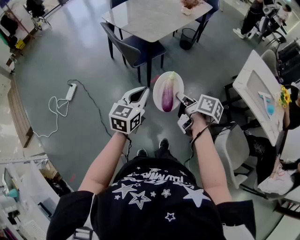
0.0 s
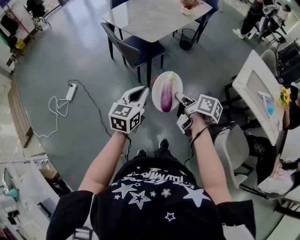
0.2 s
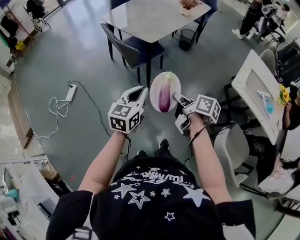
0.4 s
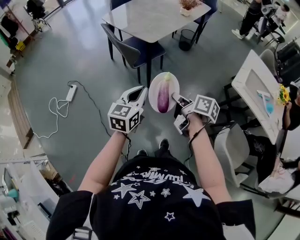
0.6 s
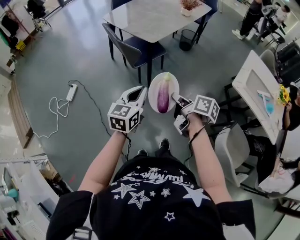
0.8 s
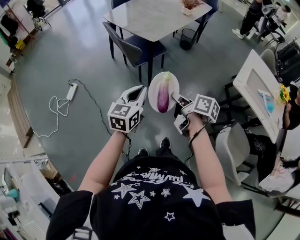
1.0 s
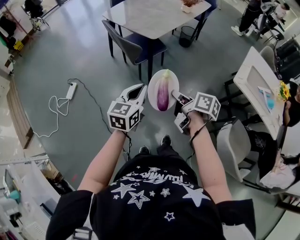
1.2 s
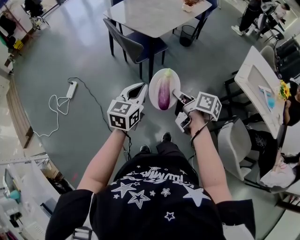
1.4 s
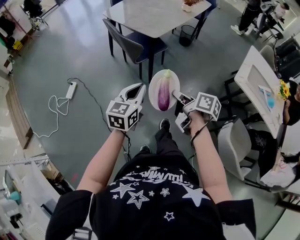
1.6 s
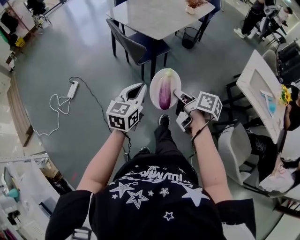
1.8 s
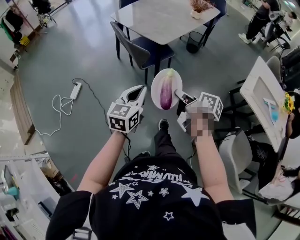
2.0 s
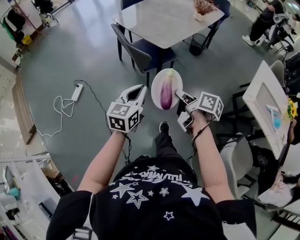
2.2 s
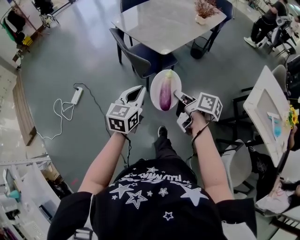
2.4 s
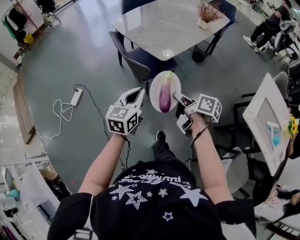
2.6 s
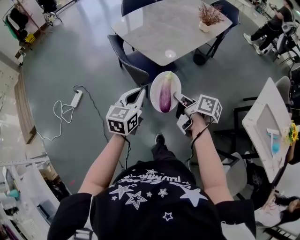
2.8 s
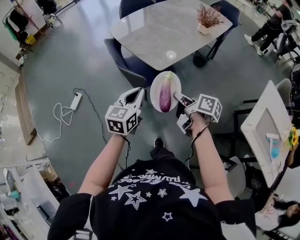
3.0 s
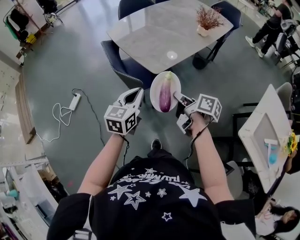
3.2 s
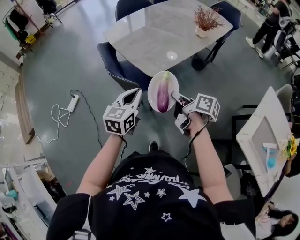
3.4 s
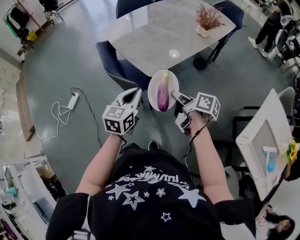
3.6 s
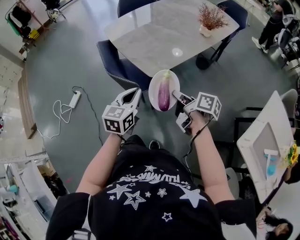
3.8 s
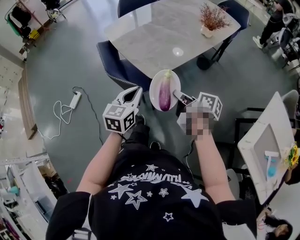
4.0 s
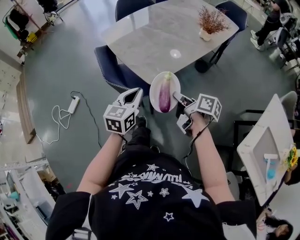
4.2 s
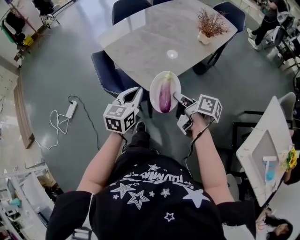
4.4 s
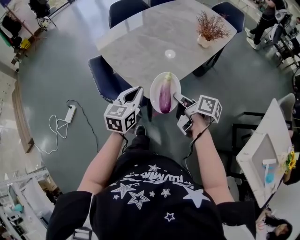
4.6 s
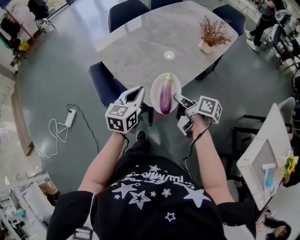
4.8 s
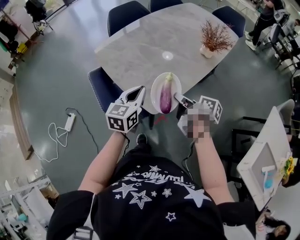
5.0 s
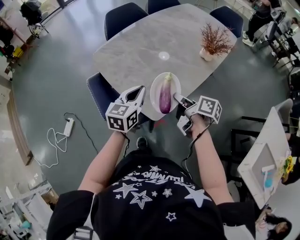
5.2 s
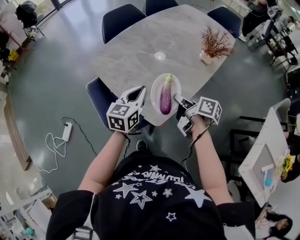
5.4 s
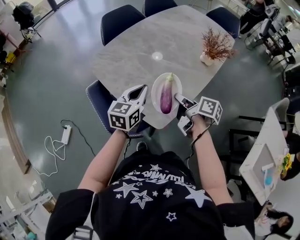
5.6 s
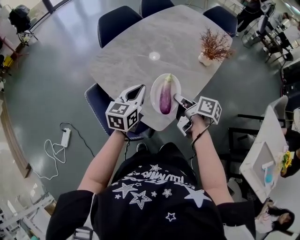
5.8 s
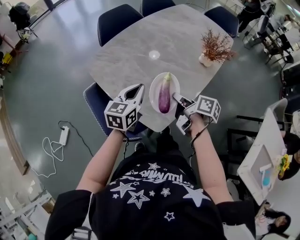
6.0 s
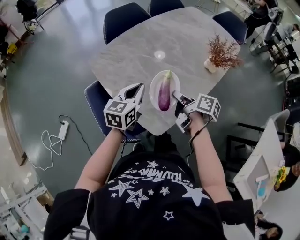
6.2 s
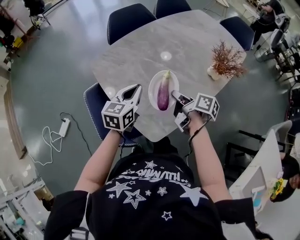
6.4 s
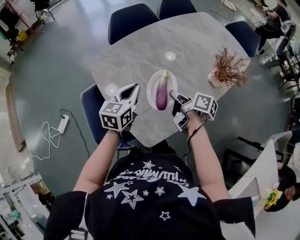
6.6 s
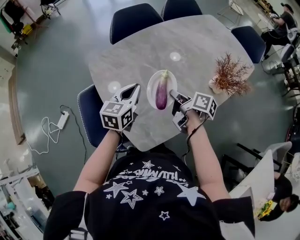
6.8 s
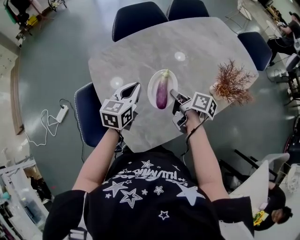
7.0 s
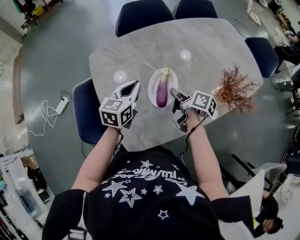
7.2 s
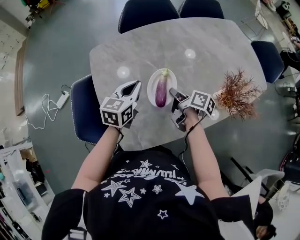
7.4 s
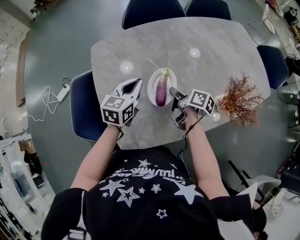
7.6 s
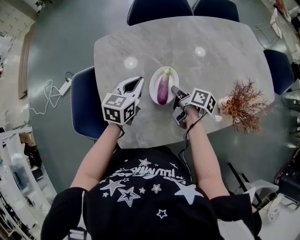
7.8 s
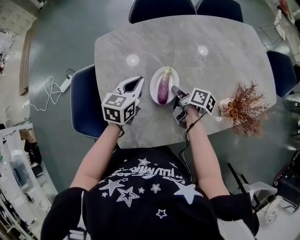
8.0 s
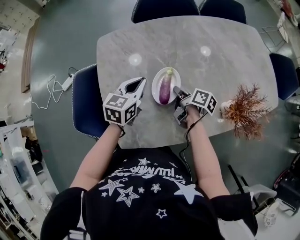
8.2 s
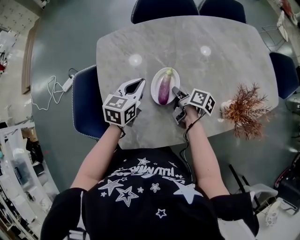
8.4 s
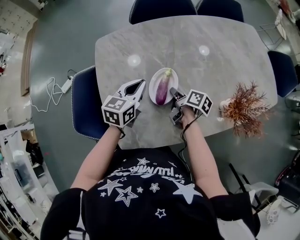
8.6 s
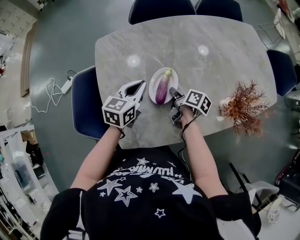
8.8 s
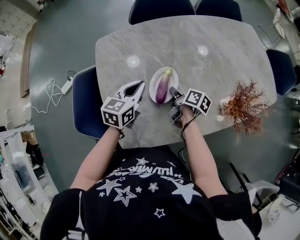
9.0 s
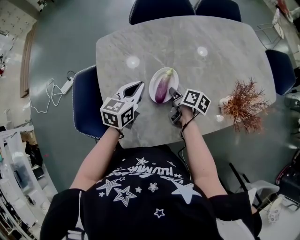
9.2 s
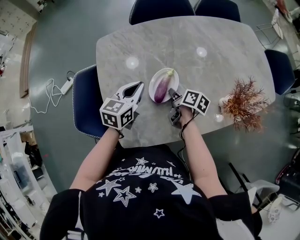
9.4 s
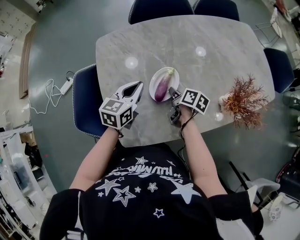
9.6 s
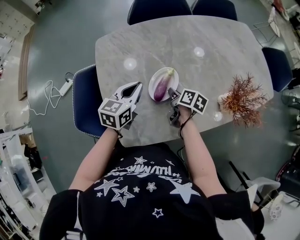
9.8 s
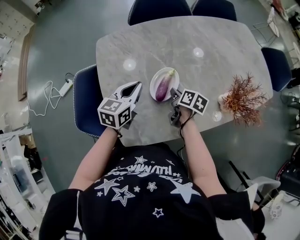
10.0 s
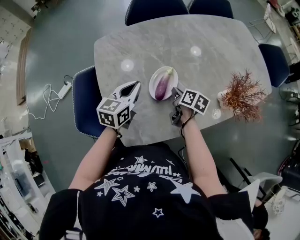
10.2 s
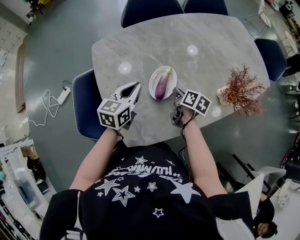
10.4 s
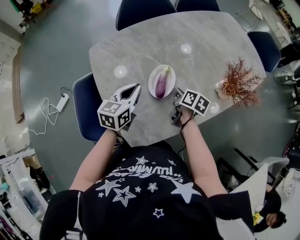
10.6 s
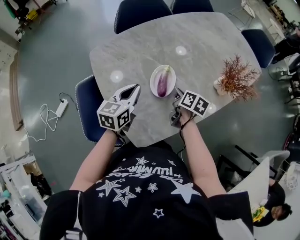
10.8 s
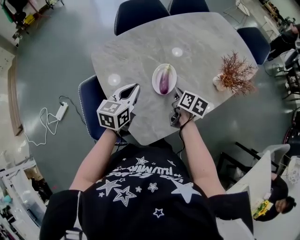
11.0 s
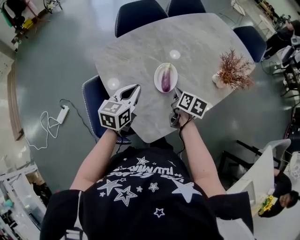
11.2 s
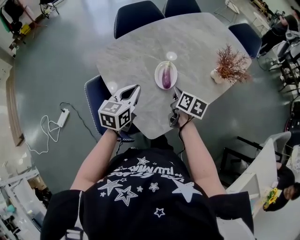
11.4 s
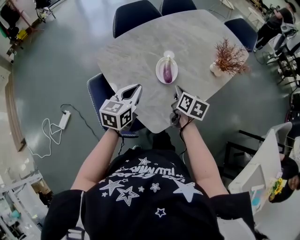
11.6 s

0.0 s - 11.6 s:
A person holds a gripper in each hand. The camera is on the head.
0.0 s - 1.4 s: The right gripper moves to the left, roughly 5 cm.
1.4 s - 2.8 s: The grippers both shift forward by approximately 20 cm.
2.8 s - 4.4 s: Both grippers move forward and to the right, roughly 20 cm.
4.4 s - 5.8 s: The grippers both shift forward by approximately 20 cm.
5.8 s - 7.2 s: The left gripper moves forward, approximately 15 cm, and rotates approximately 20 degrees. Meanwhile the right gripper travels forward by approximately 20 cm, and swivels about 20 degrees.
7.2 s - 8.8 s: The right gripper goes some 10 cm downward.
8.8 s - 10.2 s: The grippers move only a little.
10.2 s - 11.6 s: The two grippers go roughly 15 cm backward and upward. The right gripper changes its angle by approximately 30 degrees.

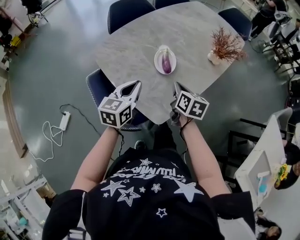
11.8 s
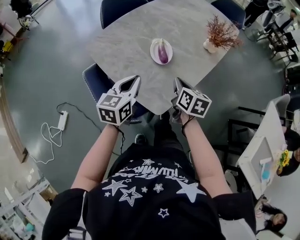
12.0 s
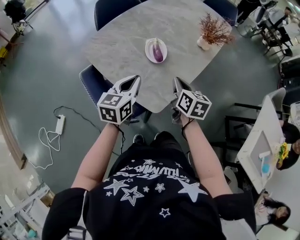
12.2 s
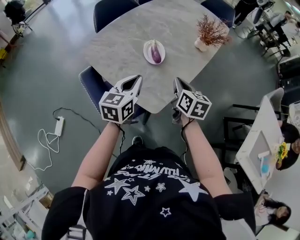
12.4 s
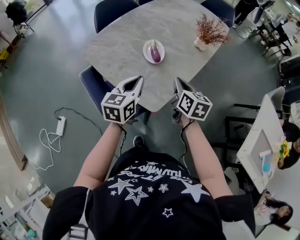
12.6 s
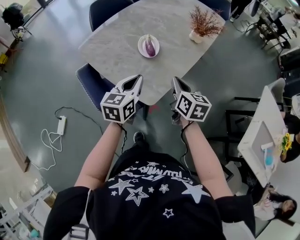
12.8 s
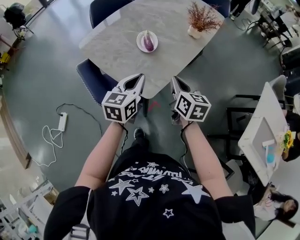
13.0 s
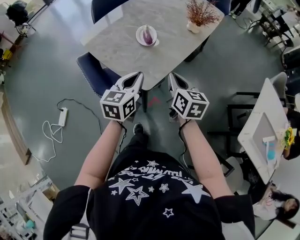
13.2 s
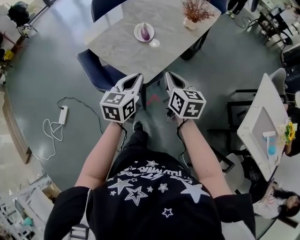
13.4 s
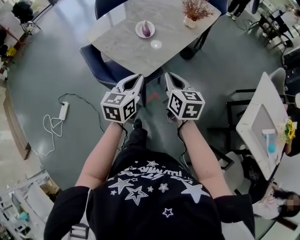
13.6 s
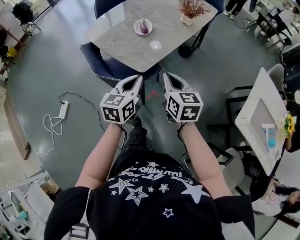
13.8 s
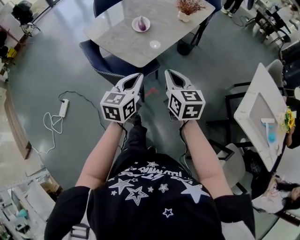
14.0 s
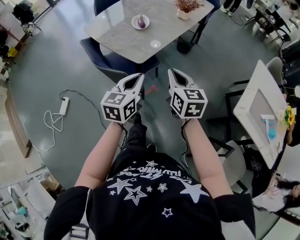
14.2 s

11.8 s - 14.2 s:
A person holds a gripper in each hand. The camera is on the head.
11.8 s - 13.0 s: The right gripper travels backward and to the right by roughly 15 cm. The left gripper goes about 15 cm to the right and backward.
13.0 s - 14.2 s: The two grippers go about 20 cm backward.

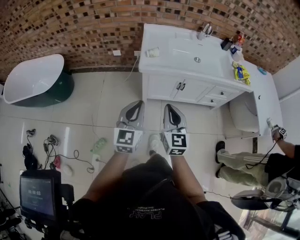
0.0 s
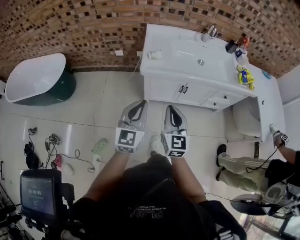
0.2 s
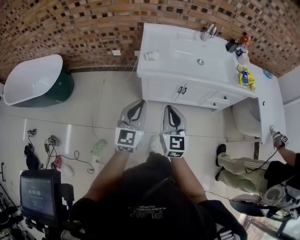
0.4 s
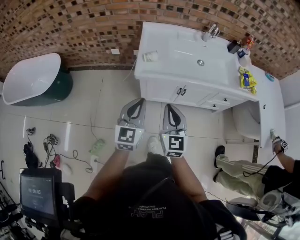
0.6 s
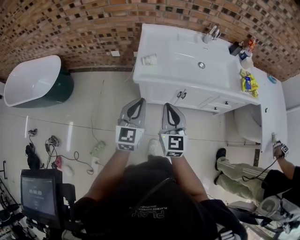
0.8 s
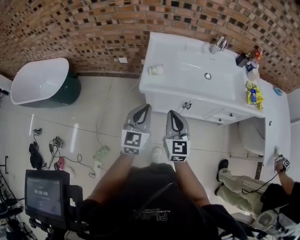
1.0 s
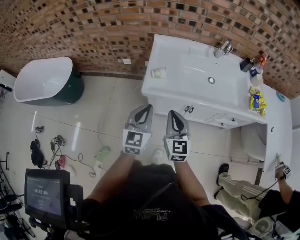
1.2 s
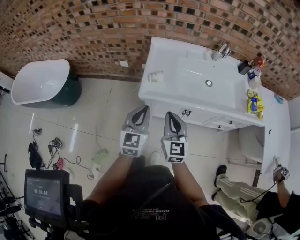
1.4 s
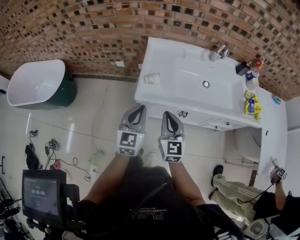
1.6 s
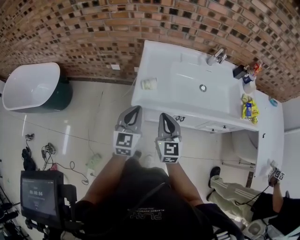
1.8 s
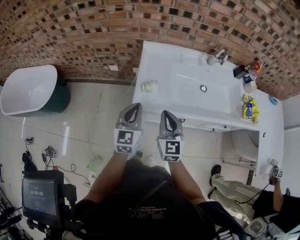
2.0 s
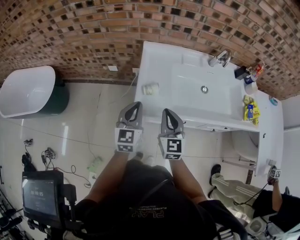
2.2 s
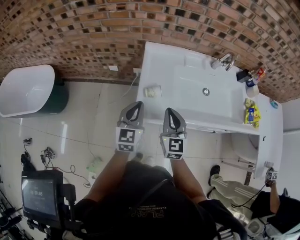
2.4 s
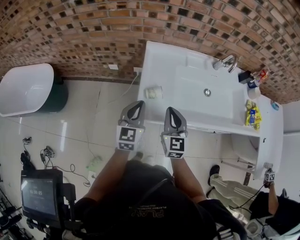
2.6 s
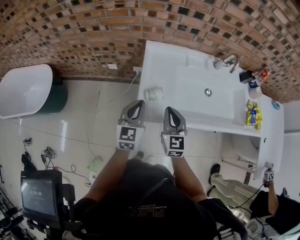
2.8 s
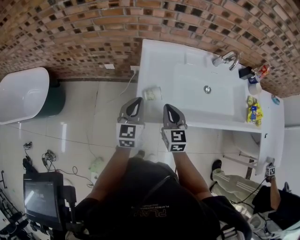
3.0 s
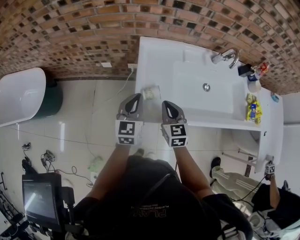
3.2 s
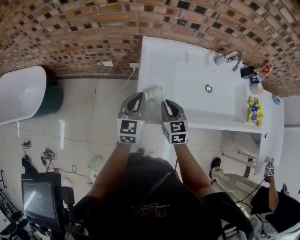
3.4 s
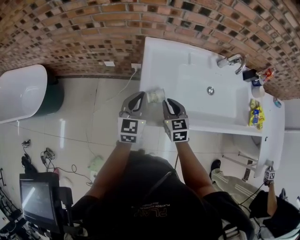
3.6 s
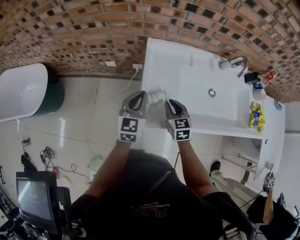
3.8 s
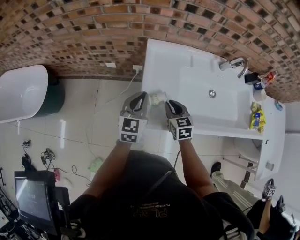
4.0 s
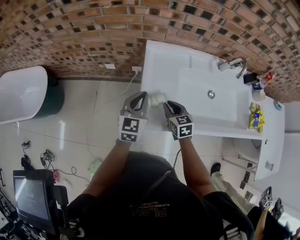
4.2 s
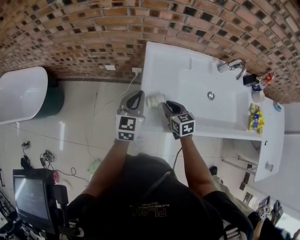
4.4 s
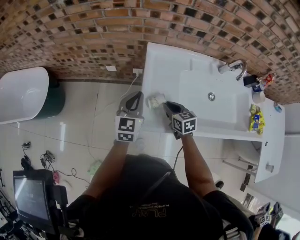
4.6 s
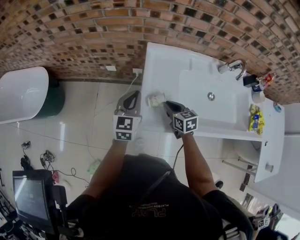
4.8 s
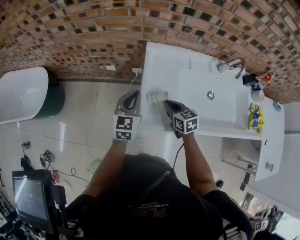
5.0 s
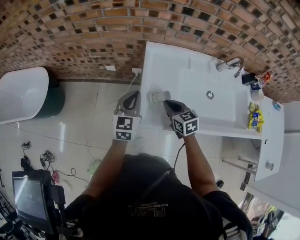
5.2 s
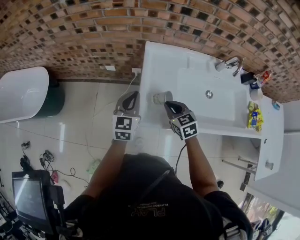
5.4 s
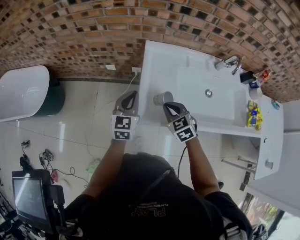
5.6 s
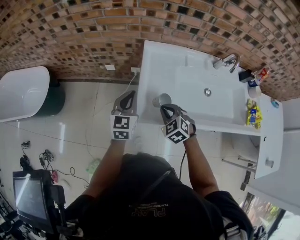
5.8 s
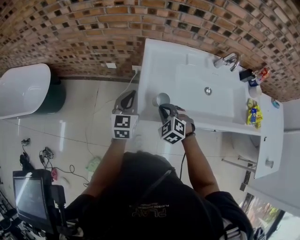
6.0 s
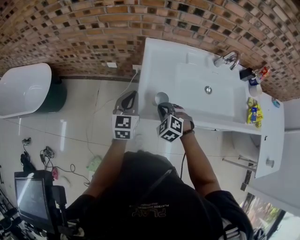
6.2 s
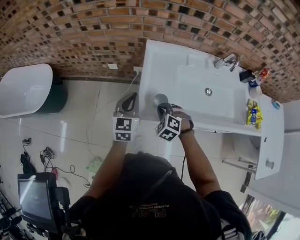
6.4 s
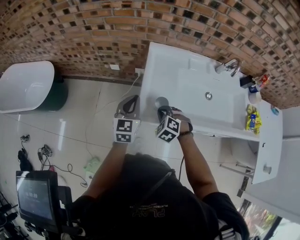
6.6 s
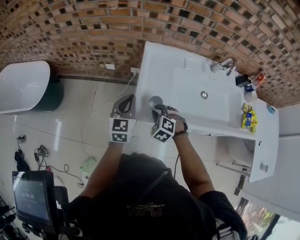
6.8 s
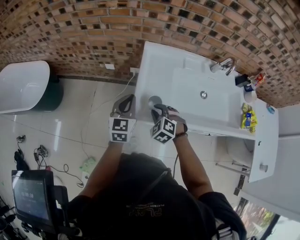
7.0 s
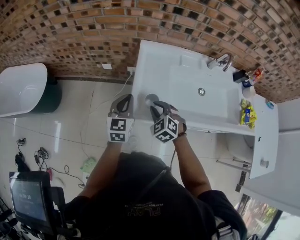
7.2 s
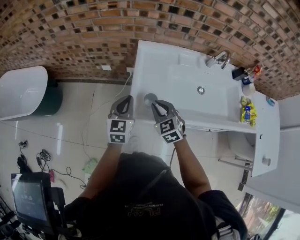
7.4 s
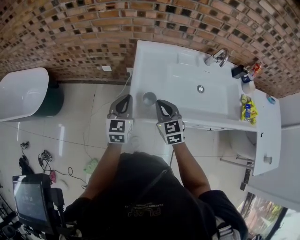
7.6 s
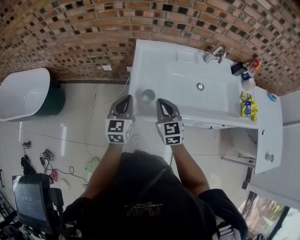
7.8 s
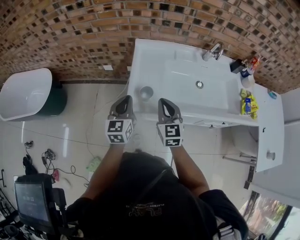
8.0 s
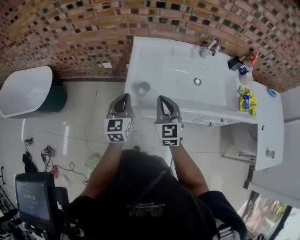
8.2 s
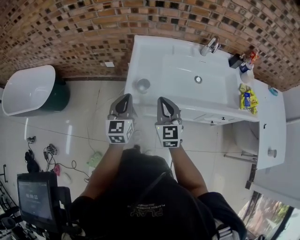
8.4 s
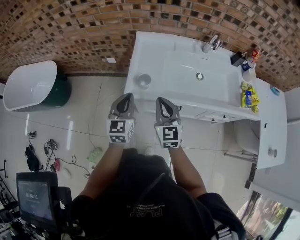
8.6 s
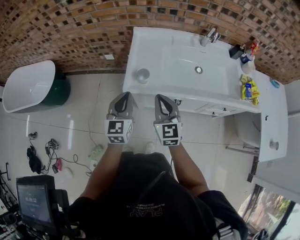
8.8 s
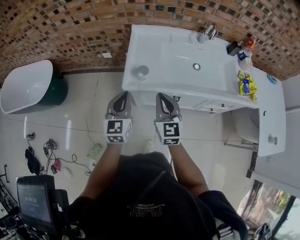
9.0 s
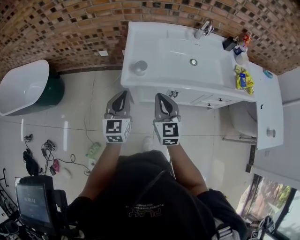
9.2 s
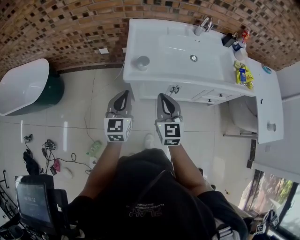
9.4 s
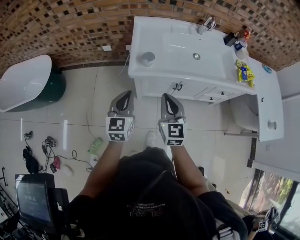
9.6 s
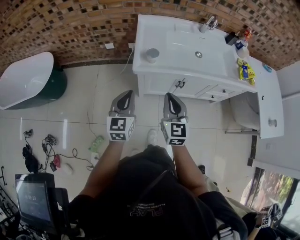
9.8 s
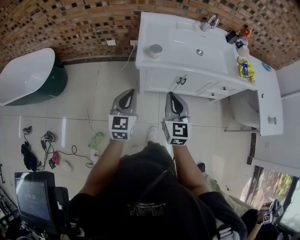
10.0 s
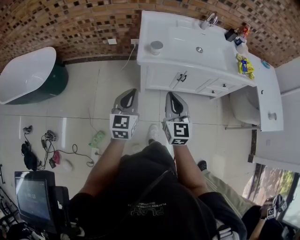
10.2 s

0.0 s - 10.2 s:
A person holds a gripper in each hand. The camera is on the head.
0.0 s - 1.4 s: The grippers both shift forward by approximately 20 cm.
1.4 s - 3.0 s: The two grippers go some 20 cm forward.
3.0 s - 4.4 s: The right gripper moves downward and forward, approximately 10 cm, and turns by about 20 degrees, while the left gripper goes roughly 5 cm forward.
4.4 s - 5.8 s: The right gripper moves backward, approximately 5 cm, and swivels roughly 40 degrees.
5.8 s - 7.2 s: The grippers move only a little.
7.2 s - 8.8 s: The right gripper goes roughly 20 cm backward, upward and to the right, and points its fingers approximately 30 degrees further upward; the left gripper is displaced backward by some 15 cm.
8.8 s - 10.2 s: Both grippers move backward, approximately 20 cm.
